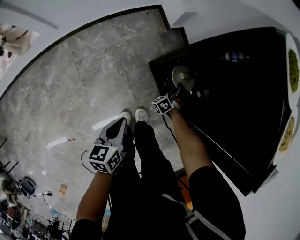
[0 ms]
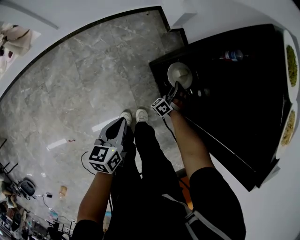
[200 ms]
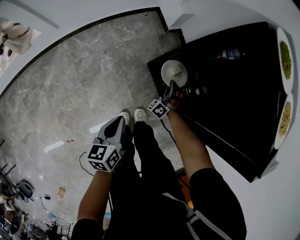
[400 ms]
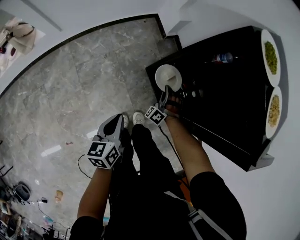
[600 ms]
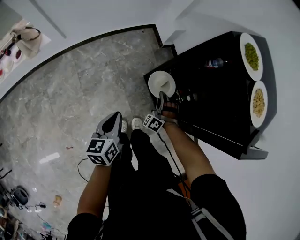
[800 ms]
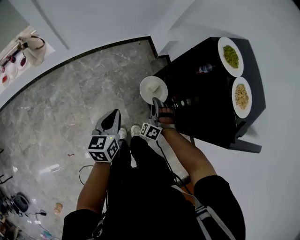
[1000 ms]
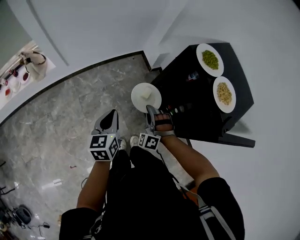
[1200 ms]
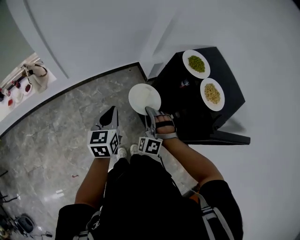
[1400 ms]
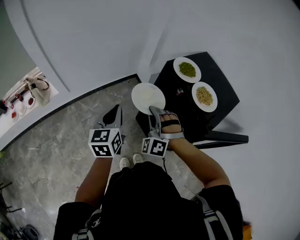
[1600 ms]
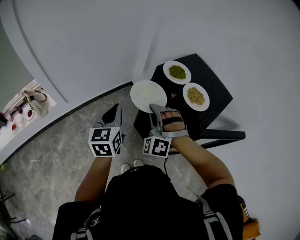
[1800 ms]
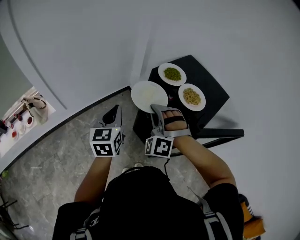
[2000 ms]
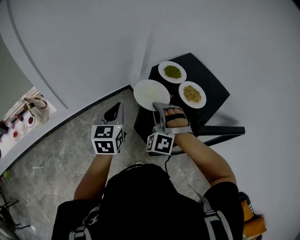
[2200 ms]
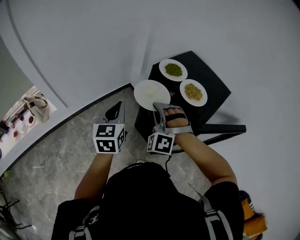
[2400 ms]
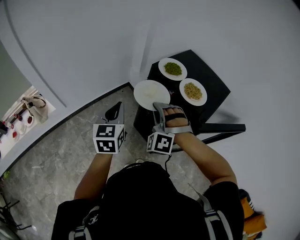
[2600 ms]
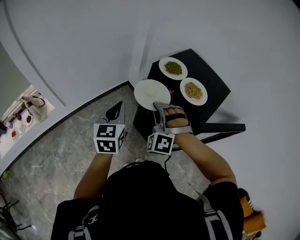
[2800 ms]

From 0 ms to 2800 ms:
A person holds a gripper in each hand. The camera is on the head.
From 0 ms to 1400 ms: The right gripper heads upward, covering roughly 40 cm, and rotates some 40 degrees, while the left gripper goes about 25 cm upward, and swivels approximately 30 degrees.
From 1400 ms to 2800 ms: The right gripper moves upward, roughly 15 cm; the left gripper shifts about 10 cm upward and to the right.

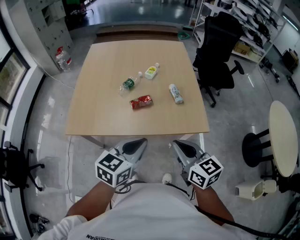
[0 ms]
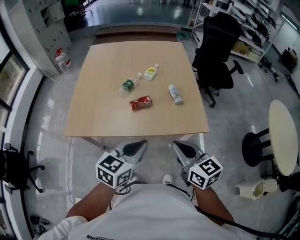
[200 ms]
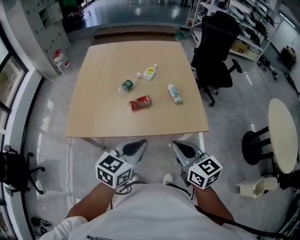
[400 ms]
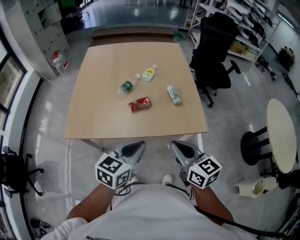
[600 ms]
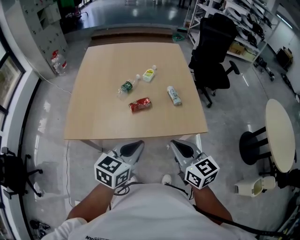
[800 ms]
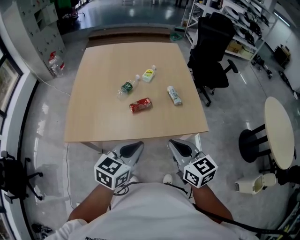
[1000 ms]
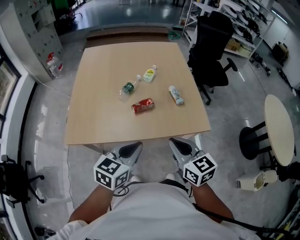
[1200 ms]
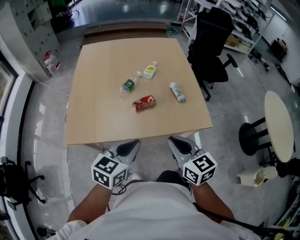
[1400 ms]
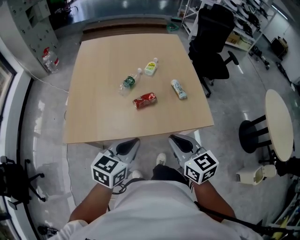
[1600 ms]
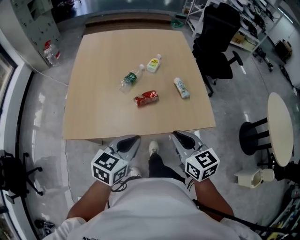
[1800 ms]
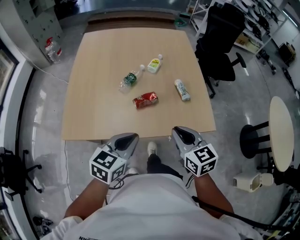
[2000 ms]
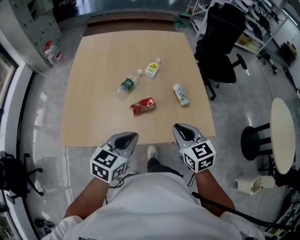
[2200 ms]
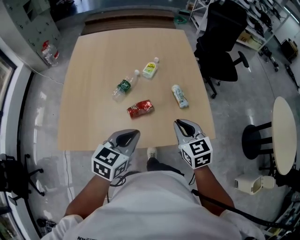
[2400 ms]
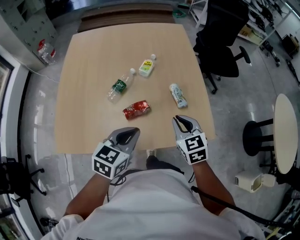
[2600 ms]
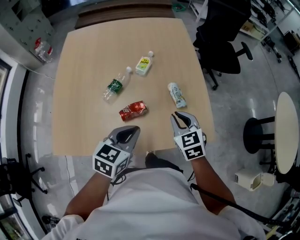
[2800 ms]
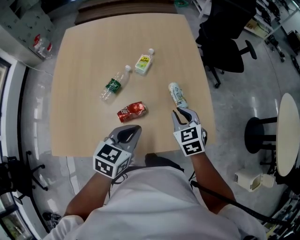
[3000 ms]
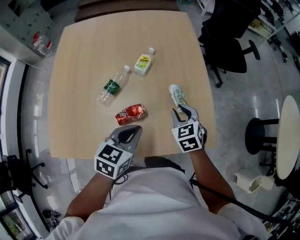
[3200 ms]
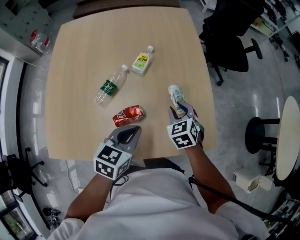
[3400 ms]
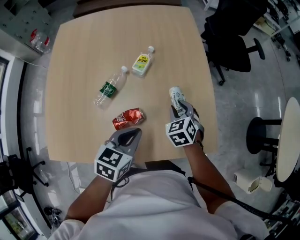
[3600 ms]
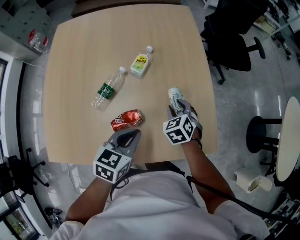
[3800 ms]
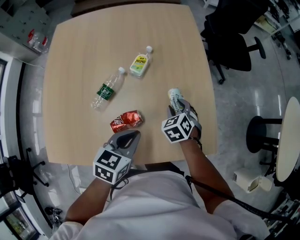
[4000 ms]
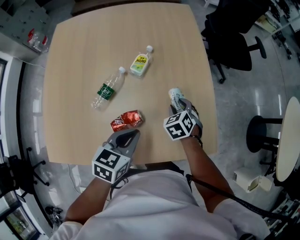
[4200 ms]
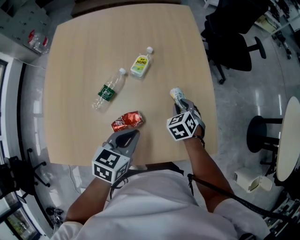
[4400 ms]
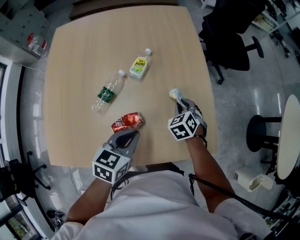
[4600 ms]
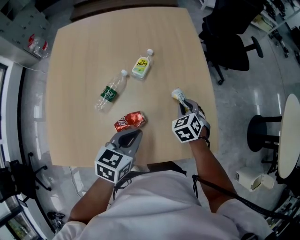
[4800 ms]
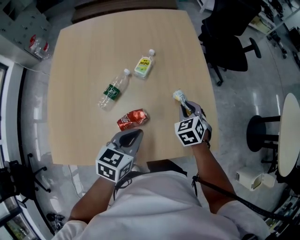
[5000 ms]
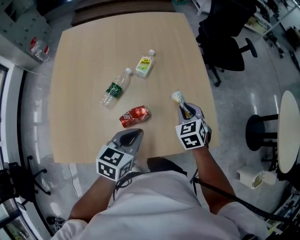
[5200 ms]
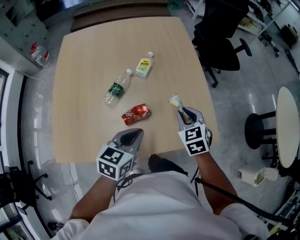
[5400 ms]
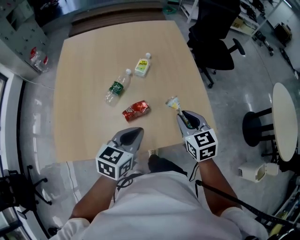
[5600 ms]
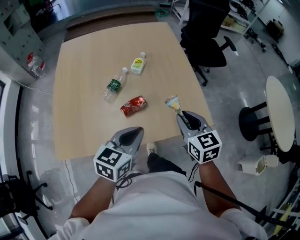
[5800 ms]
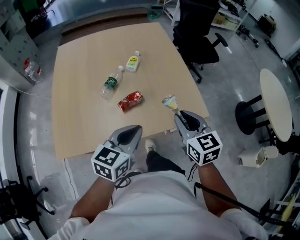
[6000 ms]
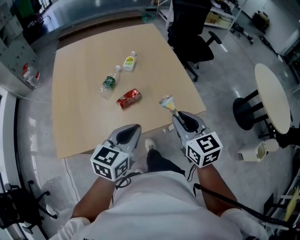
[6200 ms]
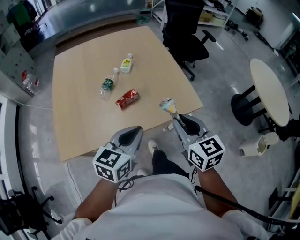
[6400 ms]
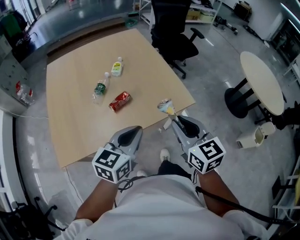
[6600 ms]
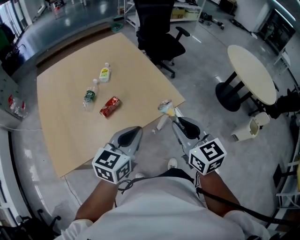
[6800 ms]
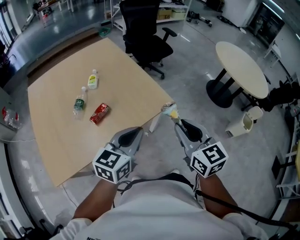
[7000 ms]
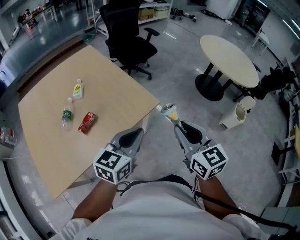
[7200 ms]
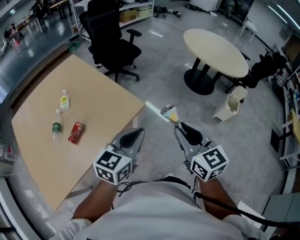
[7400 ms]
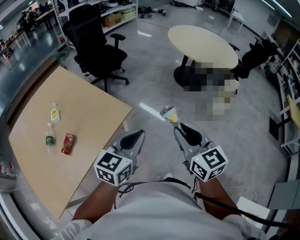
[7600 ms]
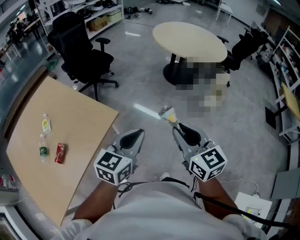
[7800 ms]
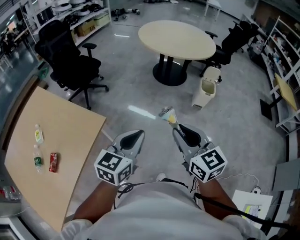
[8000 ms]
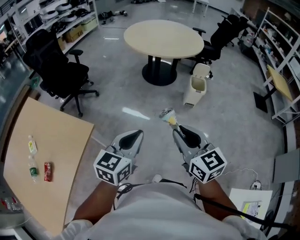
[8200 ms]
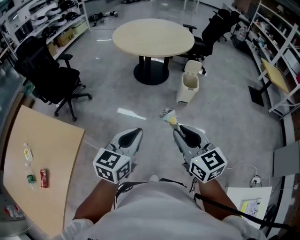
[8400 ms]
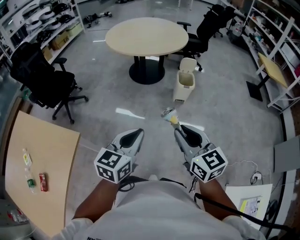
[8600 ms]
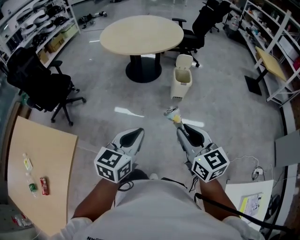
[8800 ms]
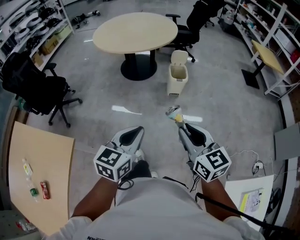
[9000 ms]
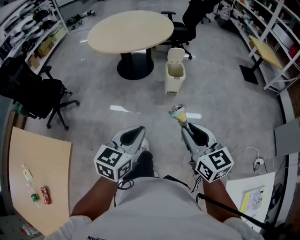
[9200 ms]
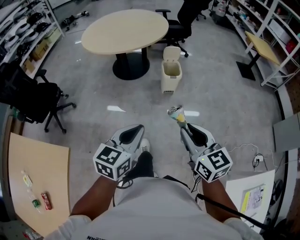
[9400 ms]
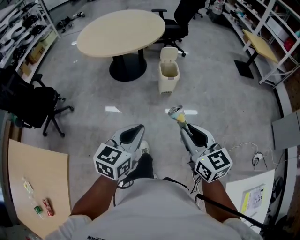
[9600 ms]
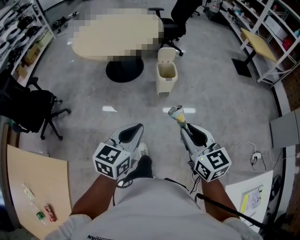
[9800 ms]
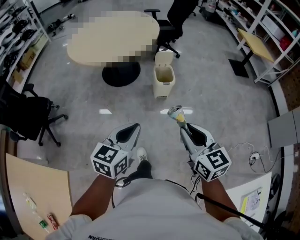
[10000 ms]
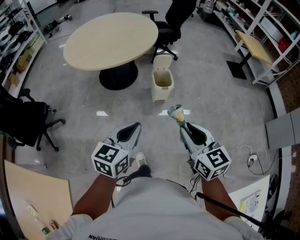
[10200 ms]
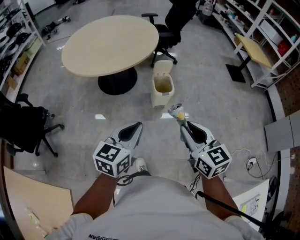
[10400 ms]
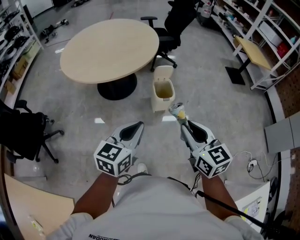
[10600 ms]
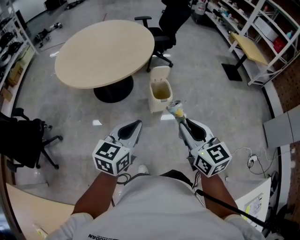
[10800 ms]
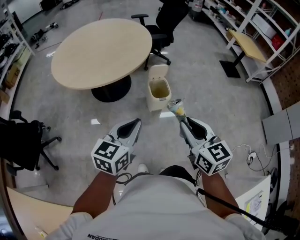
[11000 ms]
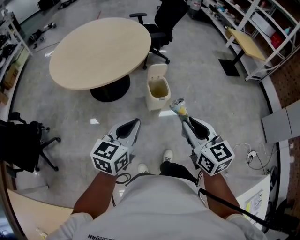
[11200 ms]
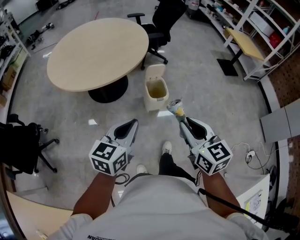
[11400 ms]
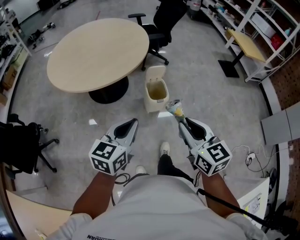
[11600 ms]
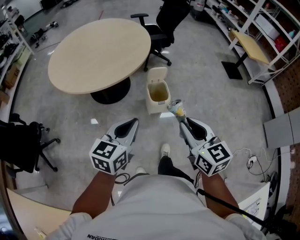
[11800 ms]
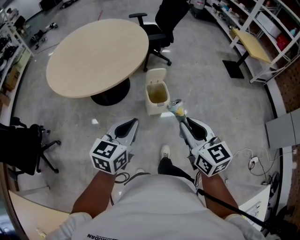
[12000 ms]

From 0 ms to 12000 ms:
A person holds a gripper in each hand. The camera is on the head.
From 0 ms to 1600 ms: Both grippers travel together to the left, approximately 5 cm.
From 1600 ms to 3000 ms: The left gripper shifts approximately 15 cm forward; the right gripper is displaced forward and downward by about 25 cm, and turns by roughly 30 degrees.
From 3000 ms to 4400 ms: The left gripper ends up approximately 5 cm from where it was; the right gripper moves downward and forward, approximately 15 cm, and turns by approximately 20 degrees.
From 4400 ms to 6000 ms: The left gripper heads backward and upward, covering approximately 15 cm, and swivels approximately 20 degrees; the right gripper shifts about 30 cm backward and upward, and tilts its fingers some 30 degrees upward.
From 6000 ms to 7600 ms: The right gripper shifts by about 35 cm, and swivels approximately 40 degrees, while the left gripper changes place by about 30 cm, and swivels approximately 40 degrees.
From 7600 ms to 9000 ms: The left gripper moves approximately 30 cm, and swivels some 30 degrees, while the right gripper moves approximately 30 cm, and swivels some 30 degrees.
From 9000 ms to 10400 ms: Both grippers travel together forward, about 20 cm.
From 10400 ms to 12000 ms: The two grippers go some 15 cm forward.

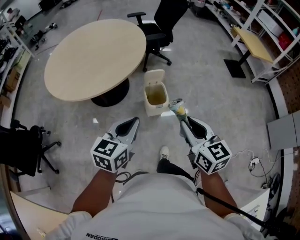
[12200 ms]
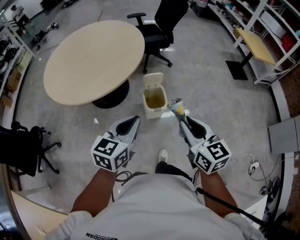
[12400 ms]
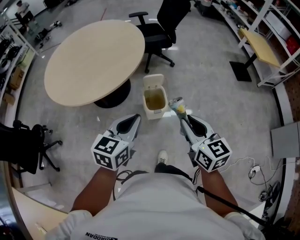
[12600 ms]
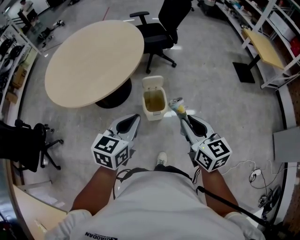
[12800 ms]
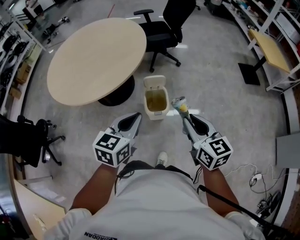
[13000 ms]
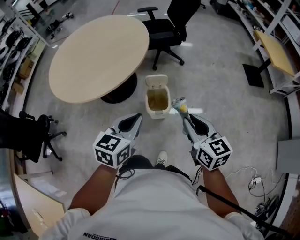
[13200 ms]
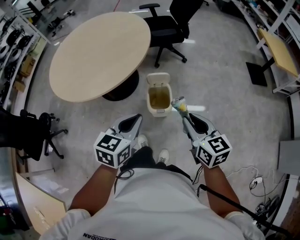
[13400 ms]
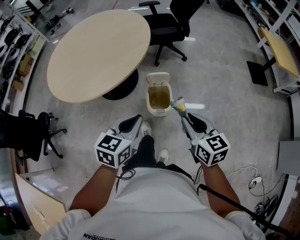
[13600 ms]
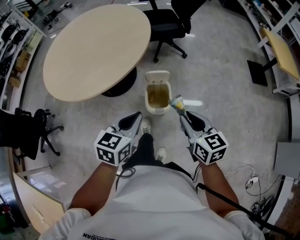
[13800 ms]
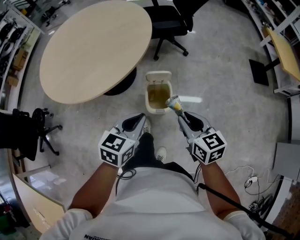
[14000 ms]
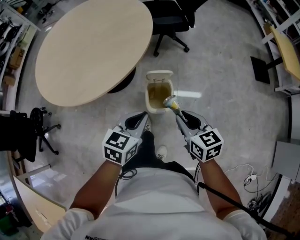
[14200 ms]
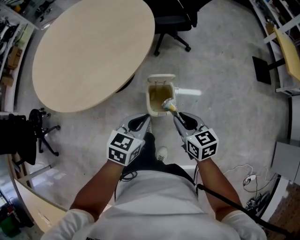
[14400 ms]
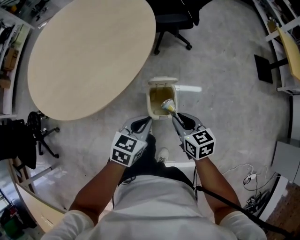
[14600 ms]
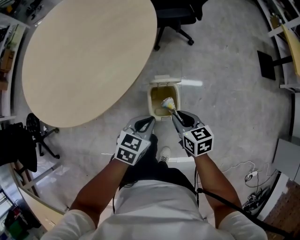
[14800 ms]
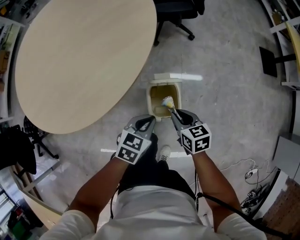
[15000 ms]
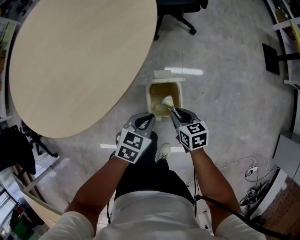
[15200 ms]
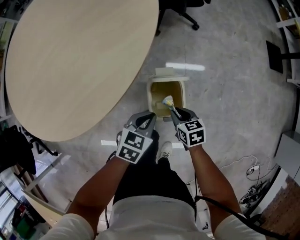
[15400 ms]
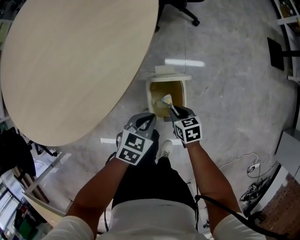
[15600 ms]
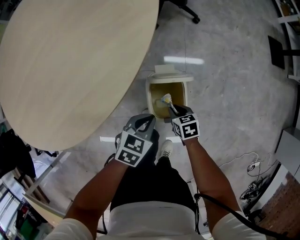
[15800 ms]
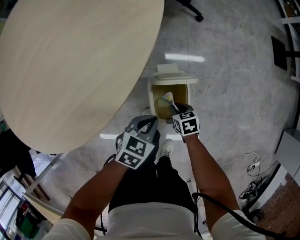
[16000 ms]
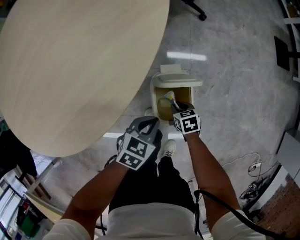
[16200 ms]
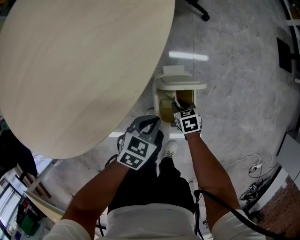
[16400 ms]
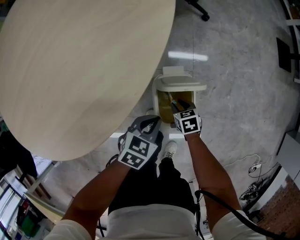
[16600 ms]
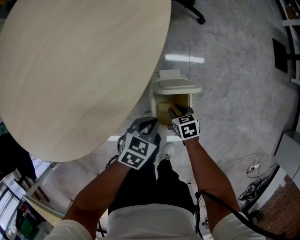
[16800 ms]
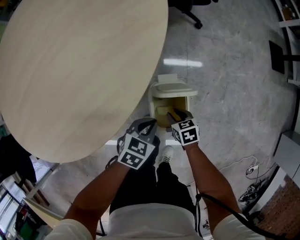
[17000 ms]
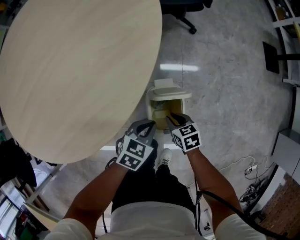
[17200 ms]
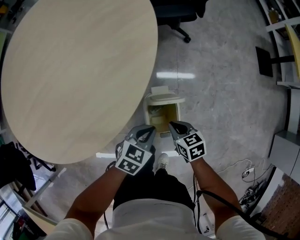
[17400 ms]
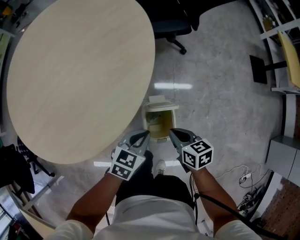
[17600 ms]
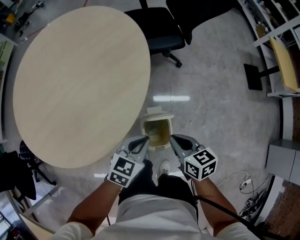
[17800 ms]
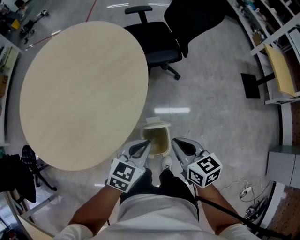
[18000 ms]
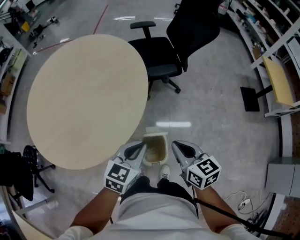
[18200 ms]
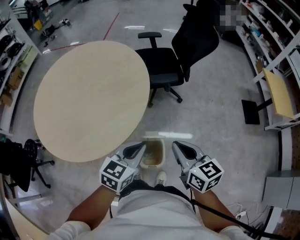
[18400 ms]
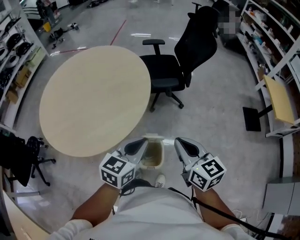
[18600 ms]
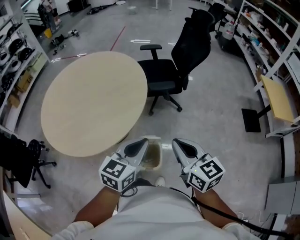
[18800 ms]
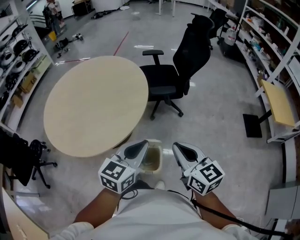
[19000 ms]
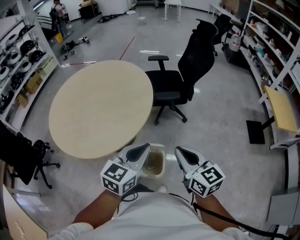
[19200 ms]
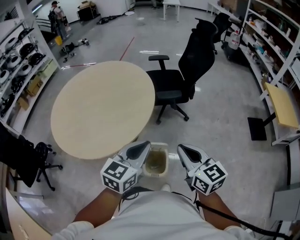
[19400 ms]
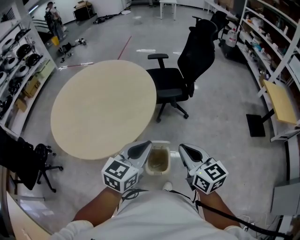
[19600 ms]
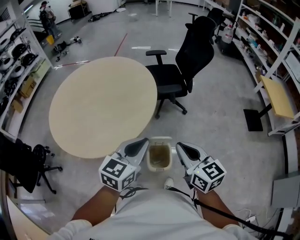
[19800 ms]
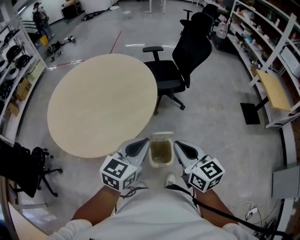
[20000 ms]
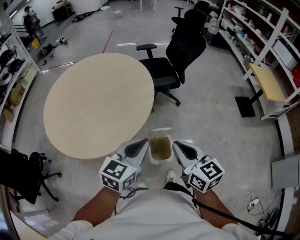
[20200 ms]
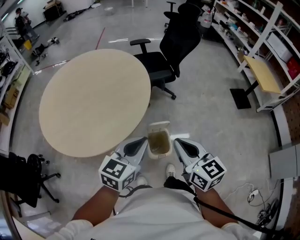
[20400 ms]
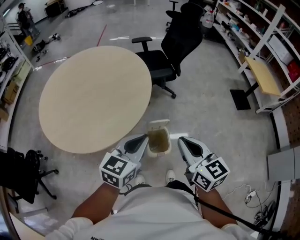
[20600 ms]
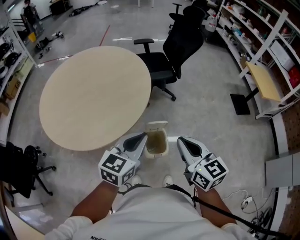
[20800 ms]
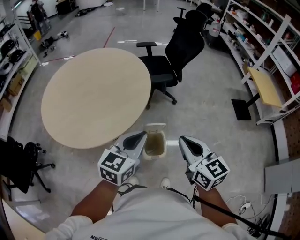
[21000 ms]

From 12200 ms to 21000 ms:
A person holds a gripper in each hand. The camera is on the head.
From 12200 ms to 13600 ms: The left gripper heads forward and to the right, covering some 15 cm; the right gripper travels forward, downward and to the right by approximately 20 cm.
From 13600 ms to 15200 ms: The grippers both shift downward and forward by roughly 30 cm. The left gripper changes its angle by approximately 20 degrees, while the right gripper rotates approximately 30 degrees.
From 15200 ms to 16600 ms: The right gripper moves downward, some 15 cm; the left gripper moves downward, roughly 10 cm.
From 16600 ms to 18000 ms: The right gripper travels upward by about 40 cm, points its fingers roughly 30 degrees further upward, and closes its fingers. The left gripper is displaced upward by some 25 cm, and rotates approximately 20 degrees.
From 18000 ms to 19600 ms: The two grippers go some 15 cm upward. The left gripper rotates about 20 degrees; the right gripper rotates about 20 degrees.
From 19600 ms to 21000 ms: The grippers both shift backward by approximately 5 cm.
